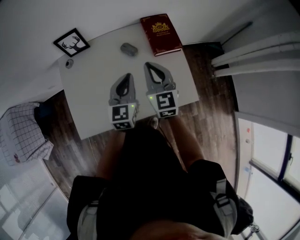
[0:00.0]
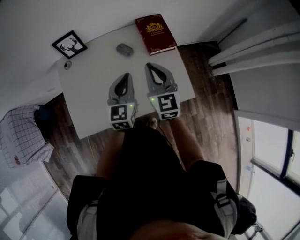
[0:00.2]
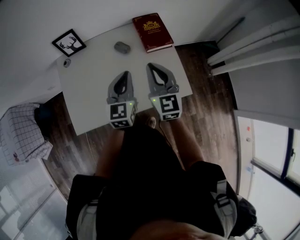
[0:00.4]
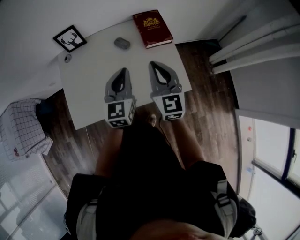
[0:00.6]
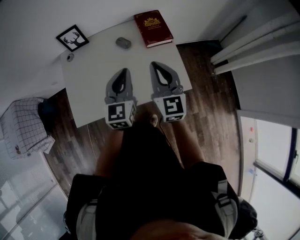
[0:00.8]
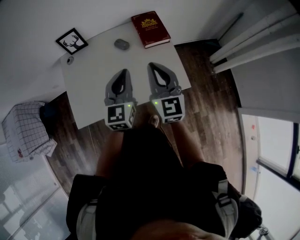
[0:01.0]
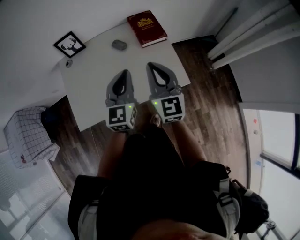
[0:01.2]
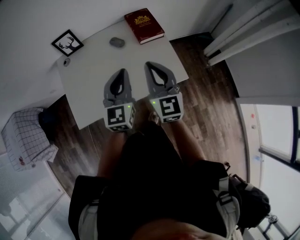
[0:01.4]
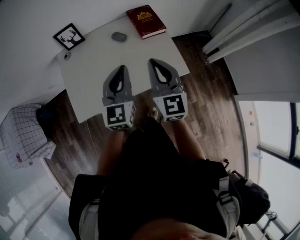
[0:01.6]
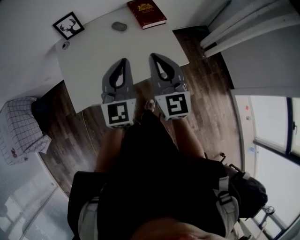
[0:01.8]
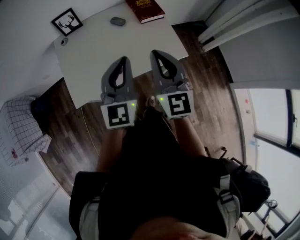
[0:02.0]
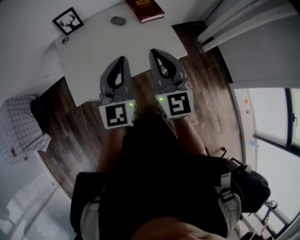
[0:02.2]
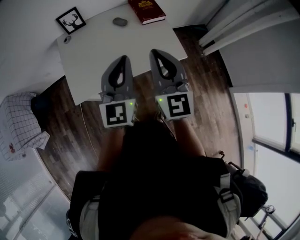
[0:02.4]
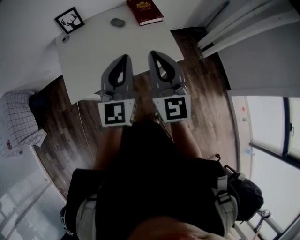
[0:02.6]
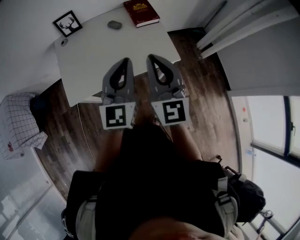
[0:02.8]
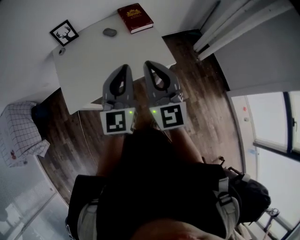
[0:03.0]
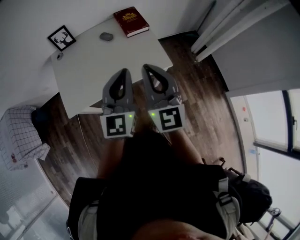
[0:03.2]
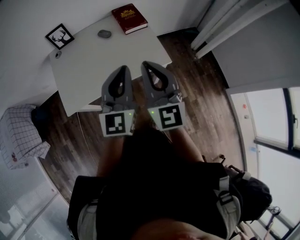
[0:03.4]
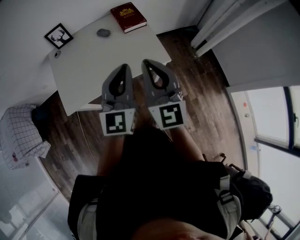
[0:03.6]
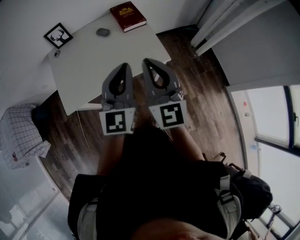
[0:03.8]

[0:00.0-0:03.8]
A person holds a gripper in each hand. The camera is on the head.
0.0 to 1.2 s: The grippers both shift backward, upward and to the right by about 15 cm.
1.2 to 2.6 s: The grippers both shift backward and upward by approximately 20 cm.
2.6 to 3.8 s: The two grippers go some 10 cm to the right.

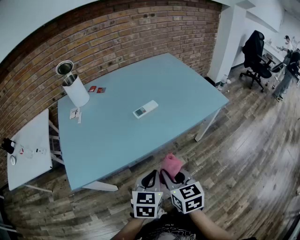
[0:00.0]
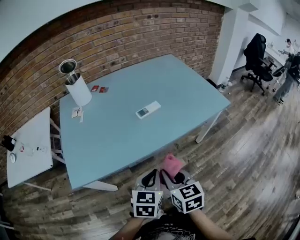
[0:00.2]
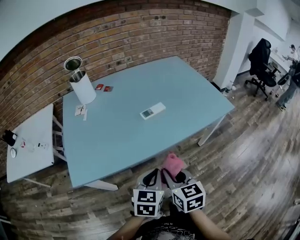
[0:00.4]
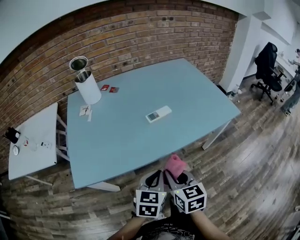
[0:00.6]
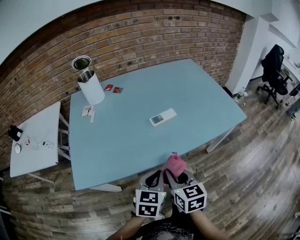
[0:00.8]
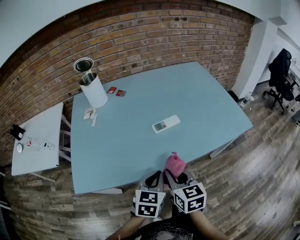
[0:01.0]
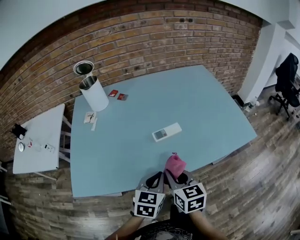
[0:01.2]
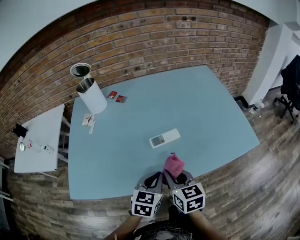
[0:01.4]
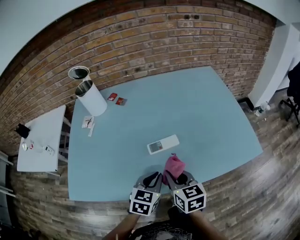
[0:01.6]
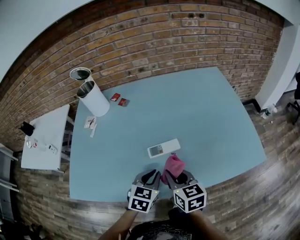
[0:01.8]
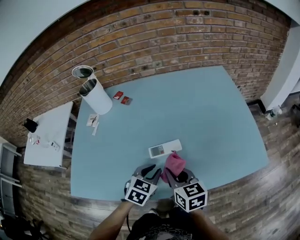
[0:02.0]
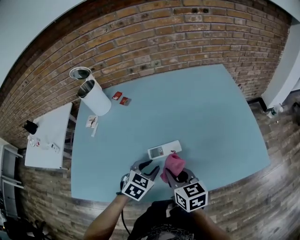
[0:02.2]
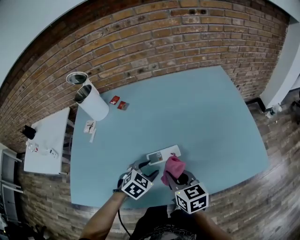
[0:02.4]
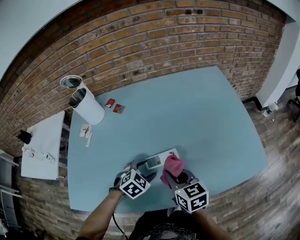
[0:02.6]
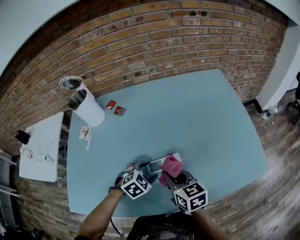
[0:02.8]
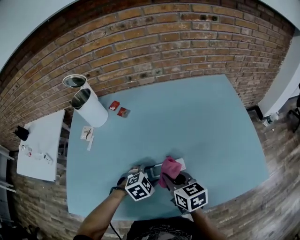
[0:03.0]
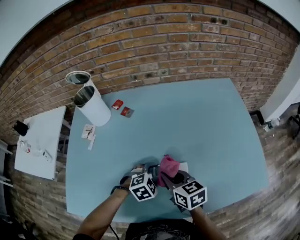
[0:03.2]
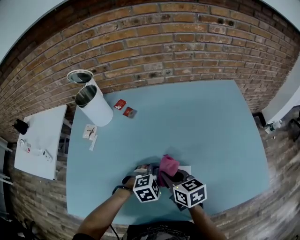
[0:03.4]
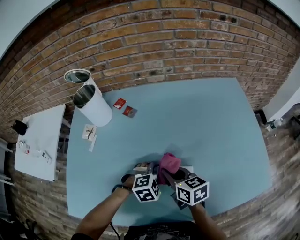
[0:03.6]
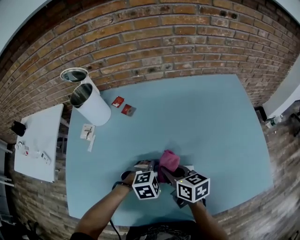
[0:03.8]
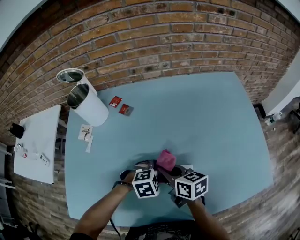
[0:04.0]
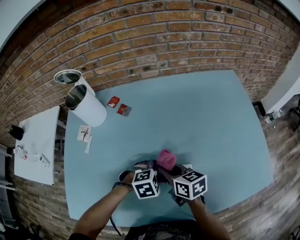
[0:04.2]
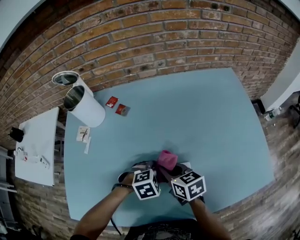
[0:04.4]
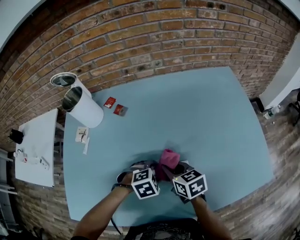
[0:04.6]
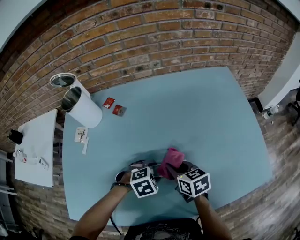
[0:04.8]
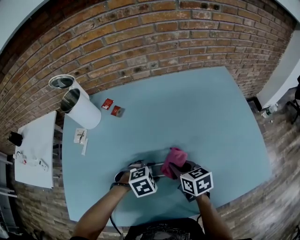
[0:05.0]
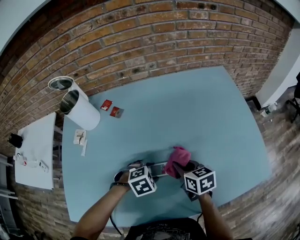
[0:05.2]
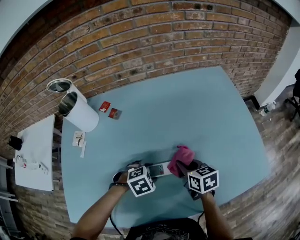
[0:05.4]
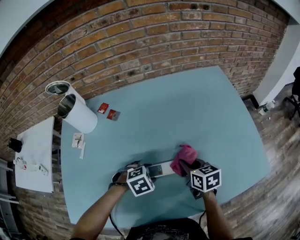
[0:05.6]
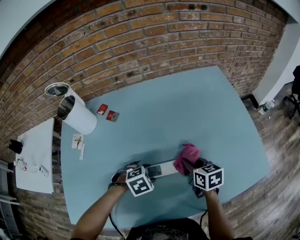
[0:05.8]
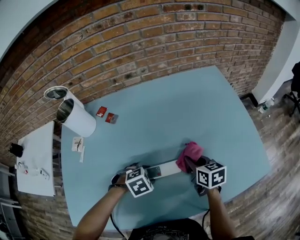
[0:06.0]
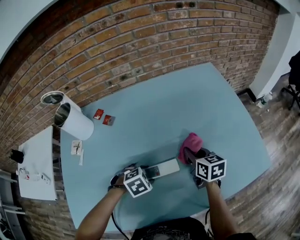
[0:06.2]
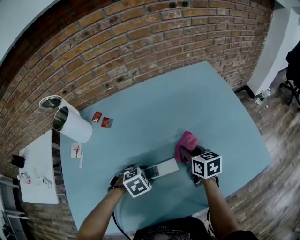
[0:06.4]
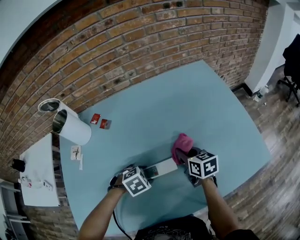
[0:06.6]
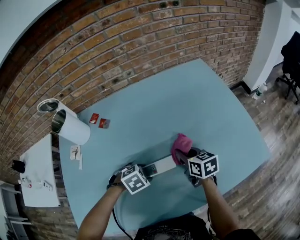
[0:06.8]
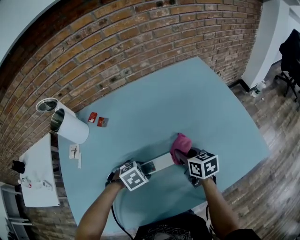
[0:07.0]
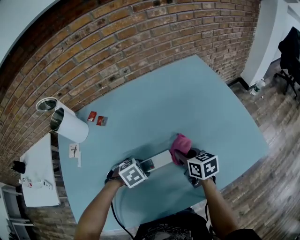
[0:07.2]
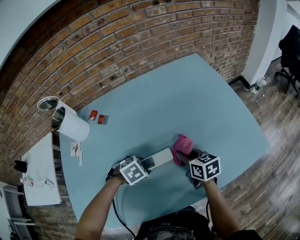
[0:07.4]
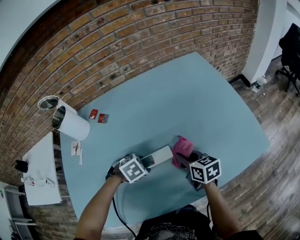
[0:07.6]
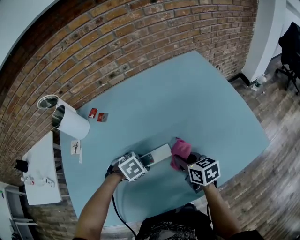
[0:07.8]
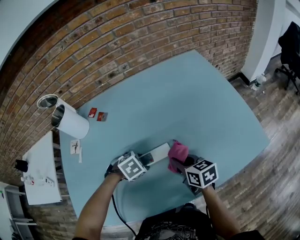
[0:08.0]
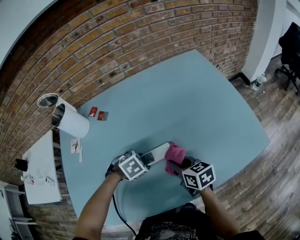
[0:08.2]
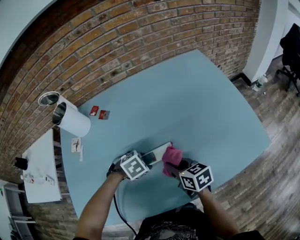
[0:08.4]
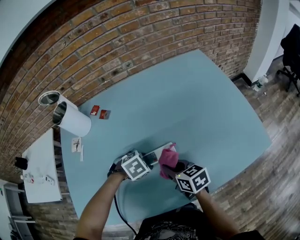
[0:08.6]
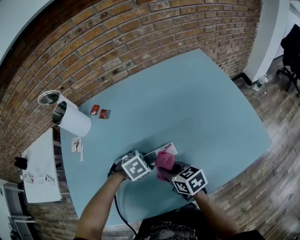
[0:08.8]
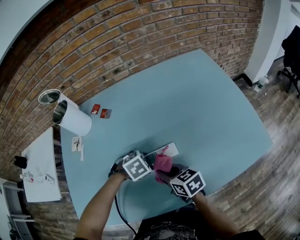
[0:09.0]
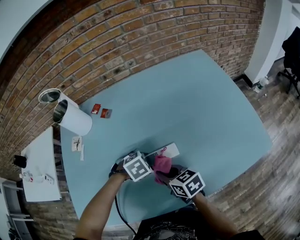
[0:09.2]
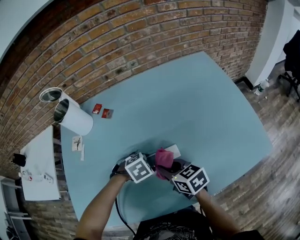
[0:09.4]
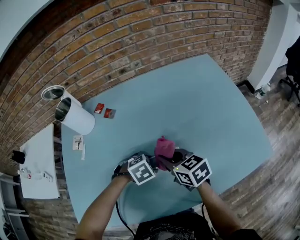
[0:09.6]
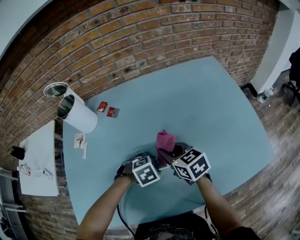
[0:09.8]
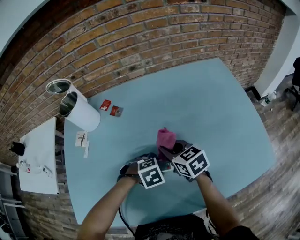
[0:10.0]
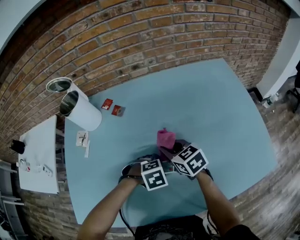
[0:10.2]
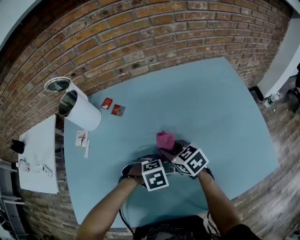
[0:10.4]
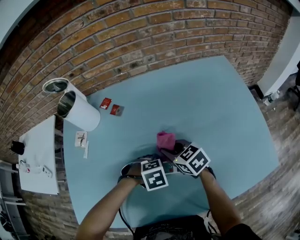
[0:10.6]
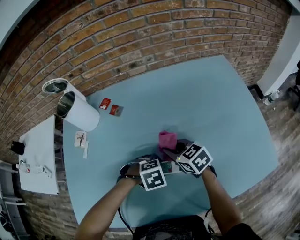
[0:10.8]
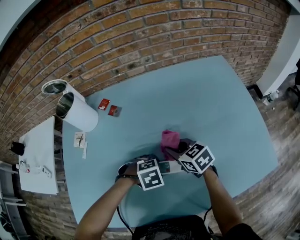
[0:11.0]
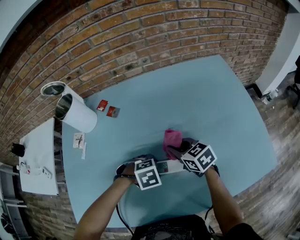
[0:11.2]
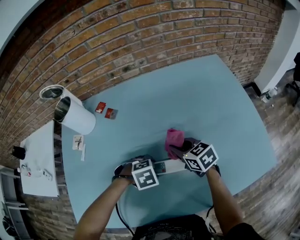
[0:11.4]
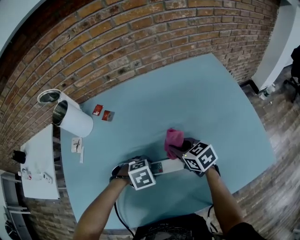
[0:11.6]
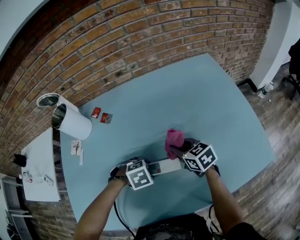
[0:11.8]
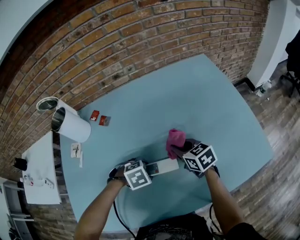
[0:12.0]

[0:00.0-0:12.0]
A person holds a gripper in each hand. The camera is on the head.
0.0 to 1.6 s: Both grippers travel together forward, some 25 cm.
1.6 to 3.0 s: The right gripper is displaced forward by roughly 10 cm; the left gripper heads forward and downward, covering some 15 cm, swivels roughly 40 degrees, and opens its fingers.
3.0 to 4.4 s: The right gripper is displaced forward by some 5 cm.
4.4 to 6.0 s: The right gripper shifts by about 15 cm.
6.0 to 7.6 s: The grippers stay close to where they were, moving slightly.
7.6 to 9.0 s: The right gripper ends up roughly 15 cm from where it was.
9.0 to 10.4 s: The right gripper ends up some 15 cm from where it was, and swivels some 20 degrees.
10.4 to 12.0 s: The right gripper ends up approximately 10 cm from where it was.

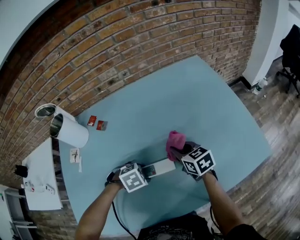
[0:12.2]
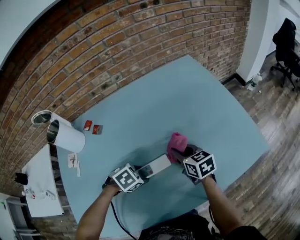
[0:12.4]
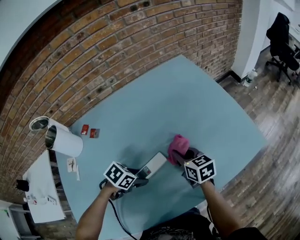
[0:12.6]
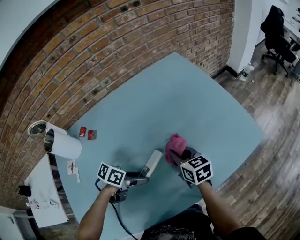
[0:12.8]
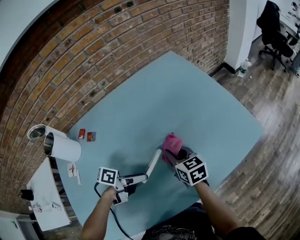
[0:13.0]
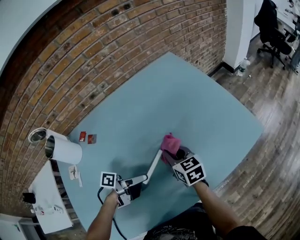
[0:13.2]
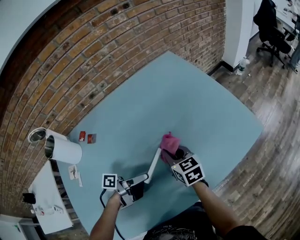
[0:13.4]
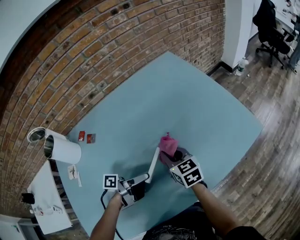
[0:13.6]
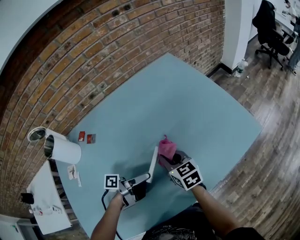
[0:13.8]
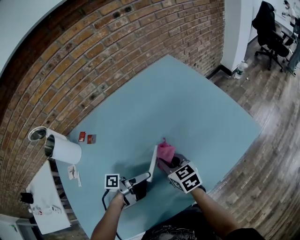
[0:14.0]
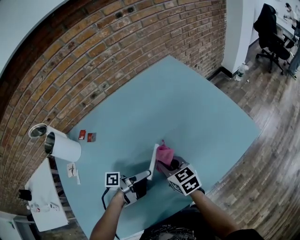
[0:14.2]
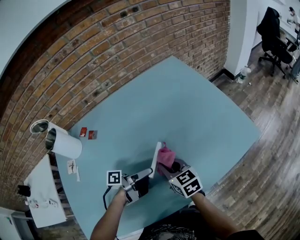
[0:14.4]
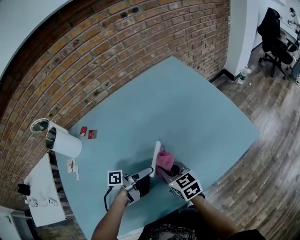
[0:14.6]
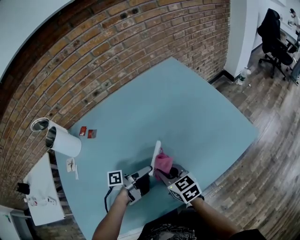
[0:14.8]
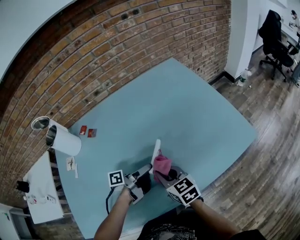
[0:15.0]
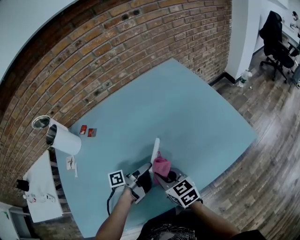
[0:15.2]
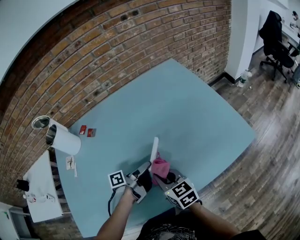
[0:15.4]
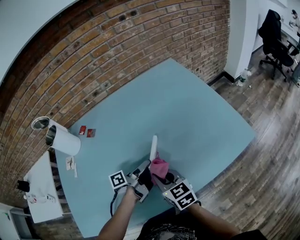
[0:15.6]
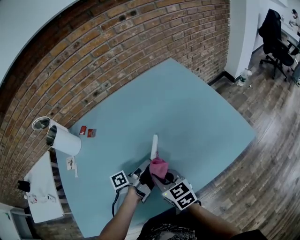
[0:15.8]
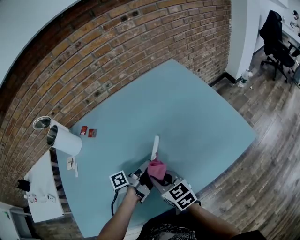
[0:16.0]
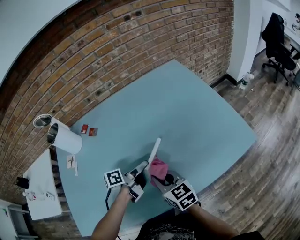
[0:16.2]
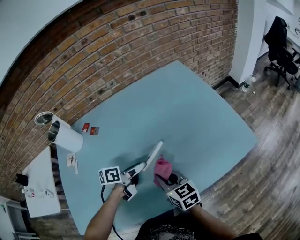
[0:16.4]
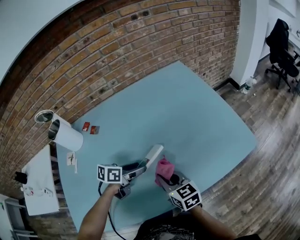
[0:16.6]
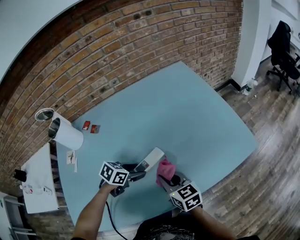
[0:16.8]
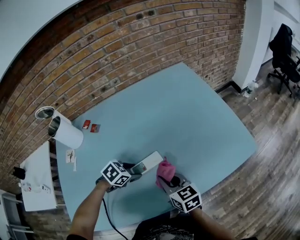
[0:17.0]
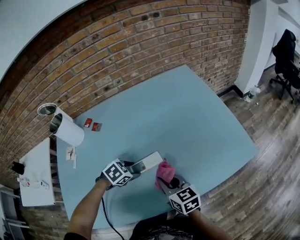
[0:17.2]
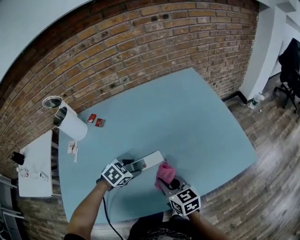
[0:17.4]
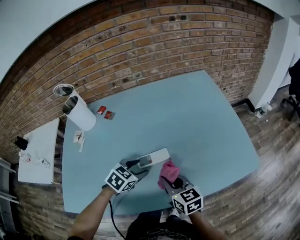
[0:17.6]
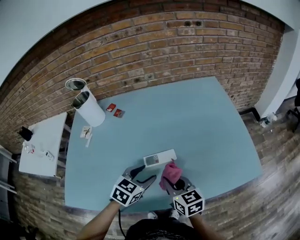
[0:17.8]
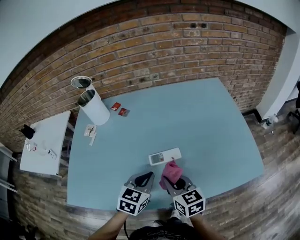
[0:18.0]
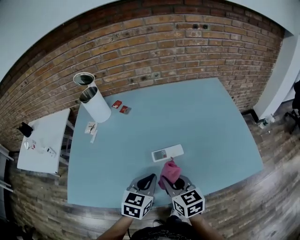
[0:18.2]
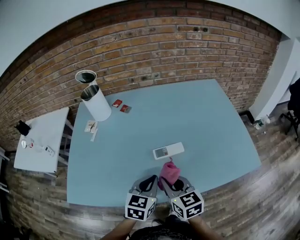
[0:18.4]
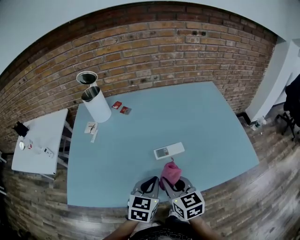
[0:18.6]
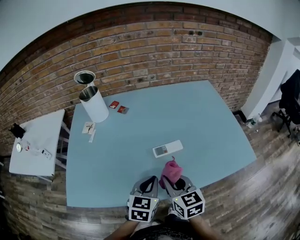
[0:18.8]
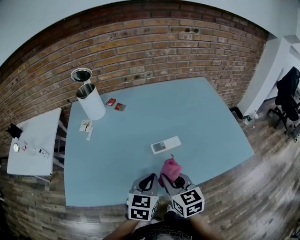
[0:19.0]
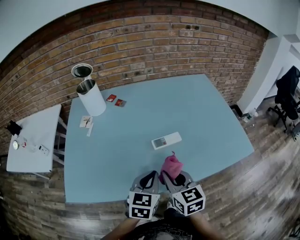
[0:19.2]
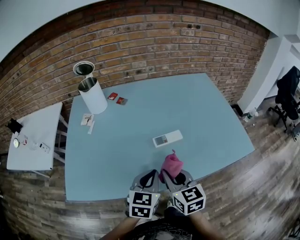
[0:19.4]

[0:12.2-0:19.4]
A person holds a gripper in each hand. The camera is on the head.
12.2 to 13.6 s: The left gripper moves upward, about 5 cm, and angles its fingers upward, by approximately 70 degrees.
13.6 to 15.0 s: The right gripper shifts approximately 10 cm backward.
15.0 to 16.6 s: The left gripper rotates around the line of its fingers by approximately 40 degrees, clockwise from behind.
16.6 to 18.0 s: The left gripper moves about 10 cm, turns by some 40 degrees, and closes its fingers. Meanwhile the right gripper shifts by some 5 cm.
18.0 to 19.4 s: The right gripper goes some 10 cm backward and to the left. Meanwhile the left gripper moves backward, about 10 cm.

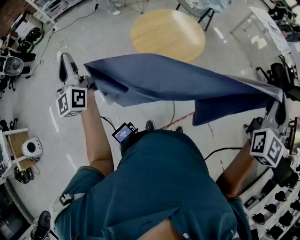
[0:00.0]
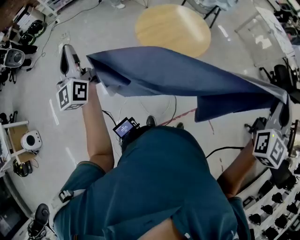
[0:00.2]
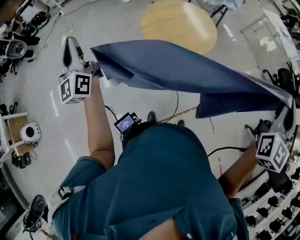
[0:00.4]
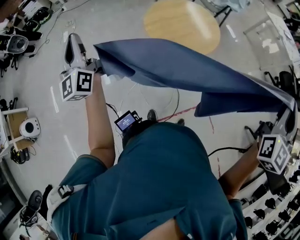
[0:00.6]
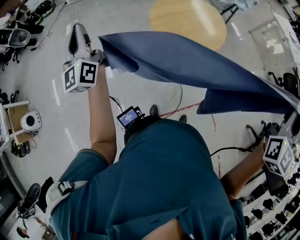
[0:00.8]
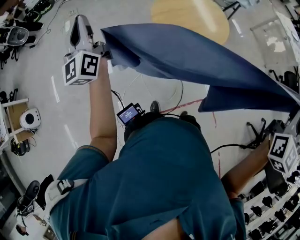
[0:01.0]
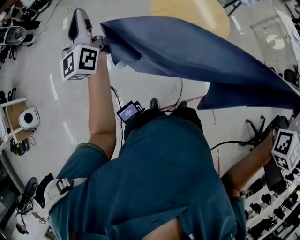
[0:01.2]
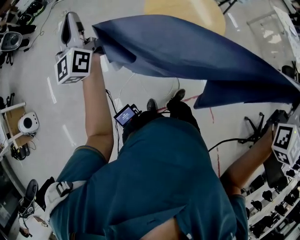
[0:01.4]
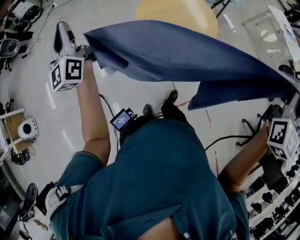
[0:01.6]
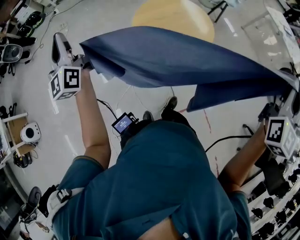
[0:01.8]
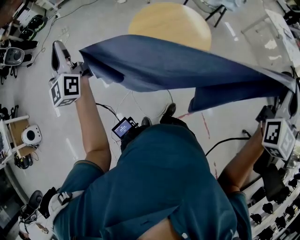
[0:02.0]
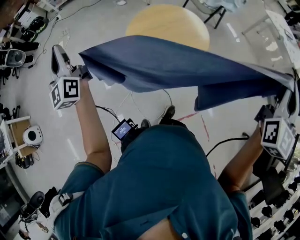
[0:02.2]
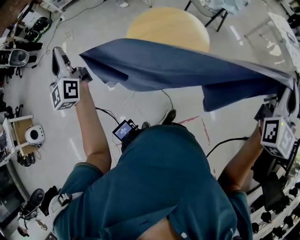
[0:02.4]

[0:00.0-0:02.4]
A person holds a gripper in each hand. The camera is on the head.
0.0 to 1.2 s: The left gripper goes about 5 cm forward. The right gripper changes place by roughly 5 cm.
1.2 to 2.4 s: The left gripper shifts roughly 15 cm to the right and forward. The right gripper heads forward and to the right, covering about 20 cm.
